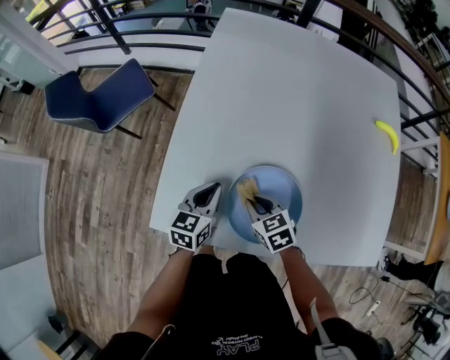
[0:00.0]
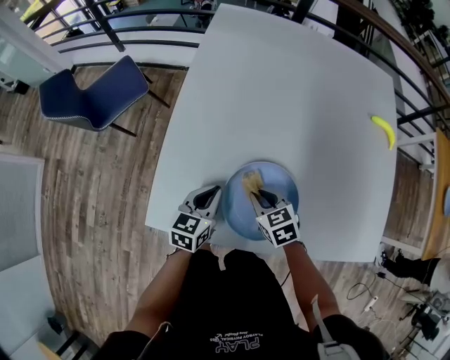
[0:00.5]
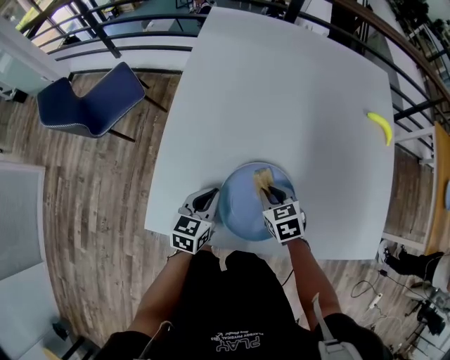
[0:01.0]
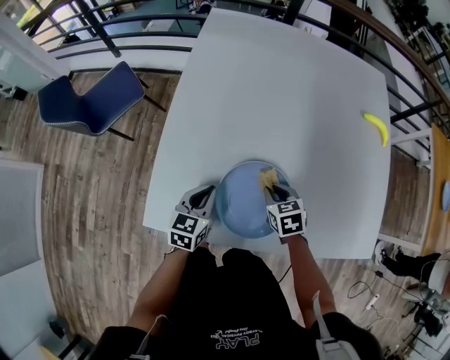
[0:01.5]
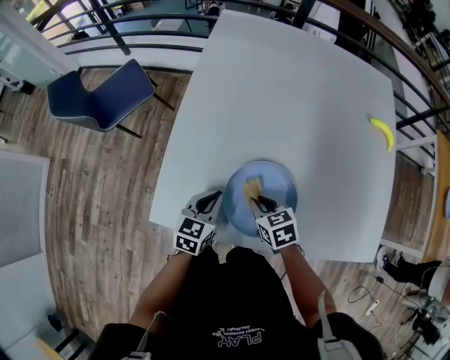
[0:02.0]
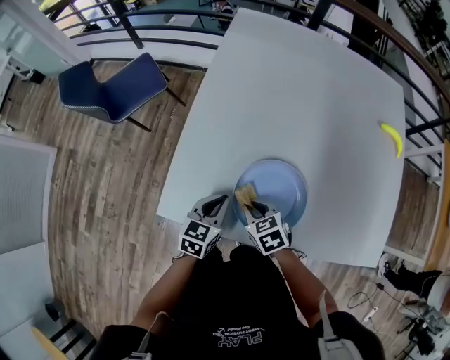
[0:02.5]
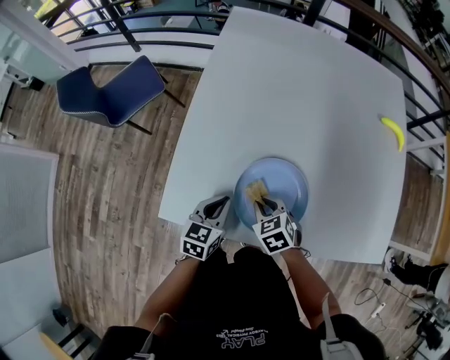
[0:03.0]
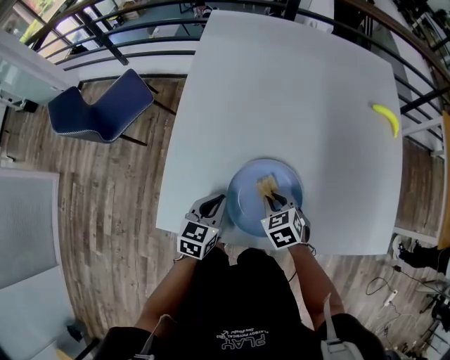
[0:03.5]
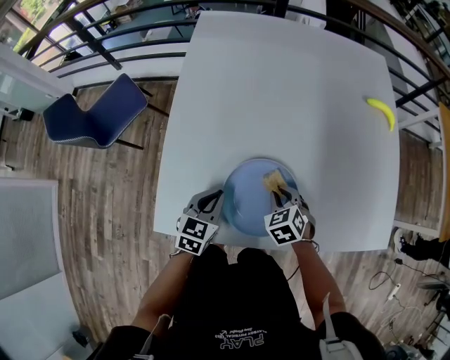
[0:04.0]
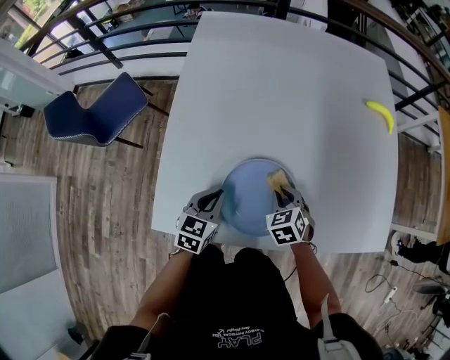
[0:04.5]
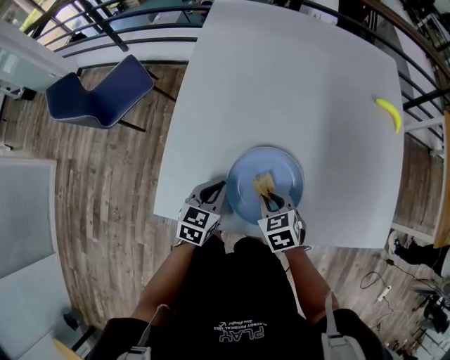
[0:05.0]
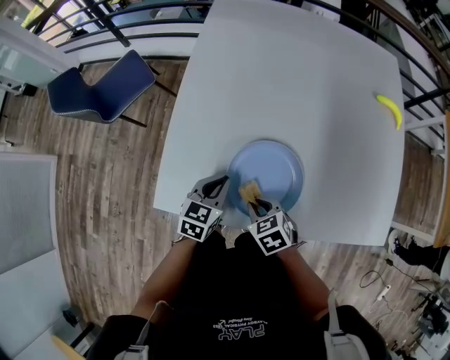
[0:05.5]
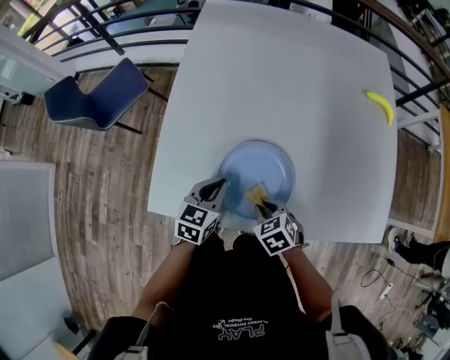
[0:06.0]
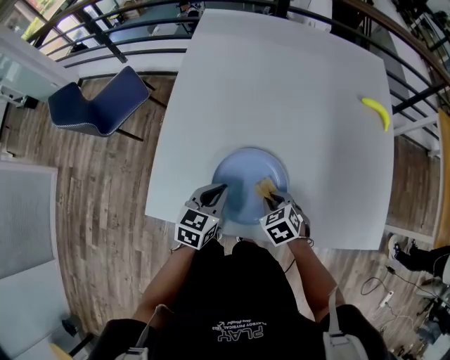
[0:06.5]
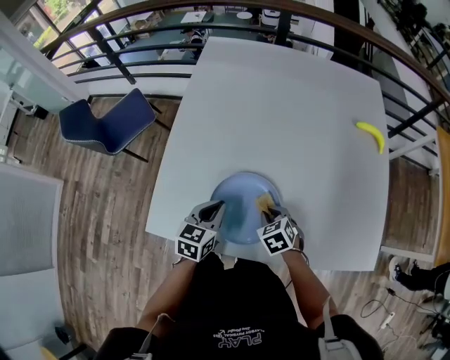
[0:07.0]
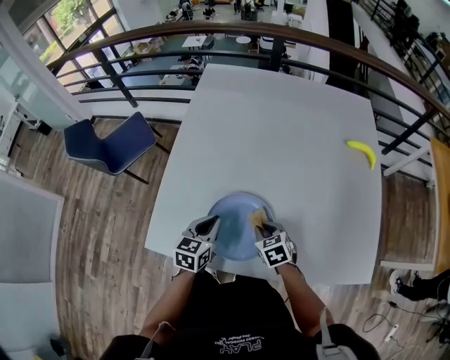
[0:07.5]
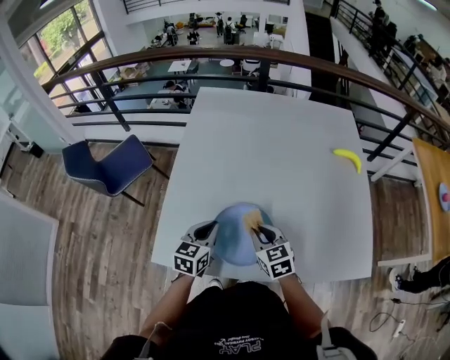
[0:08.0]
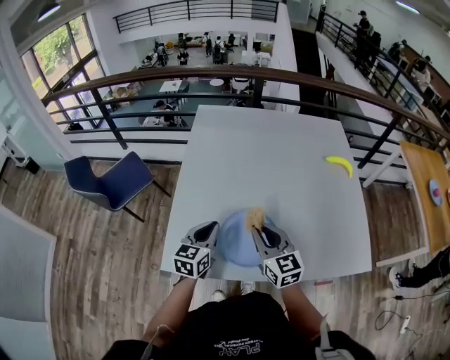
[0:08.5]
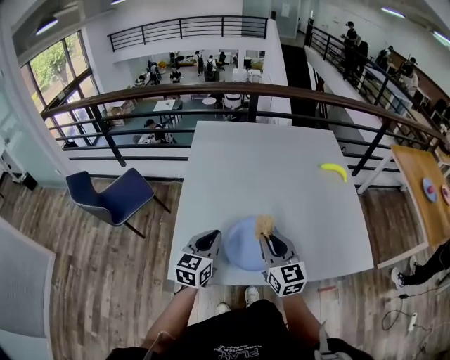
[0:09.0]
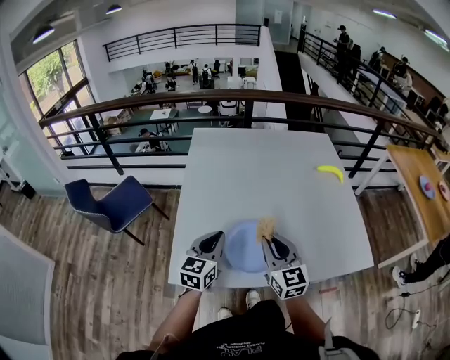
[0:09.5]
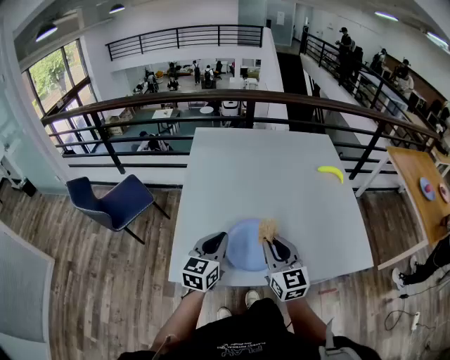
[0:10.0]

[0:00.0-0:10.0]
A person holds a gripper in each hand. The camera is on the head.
0:00.0 to 0:02.0: The right gripper travels to the right and back again, about 10 cm each way.
0:02.0 to 0:04.0: The right gripper moves to the right, some 5 cm, and rotates roughly 20 degrees.
0:04.0 to 0:06.0: The right gripper goes about 10 cm backward.
0:06.0 to 0:08.0: The left gripper travels upward by about 10 cm. The right gripper is displaced upward and forward by approximately 15 cm, and changes its angle by about 30 degrees.
0:08.0 to 0:10.0: The two grippers go some 15 cm upward and backward. The right gripper turns by some 30 degrees.

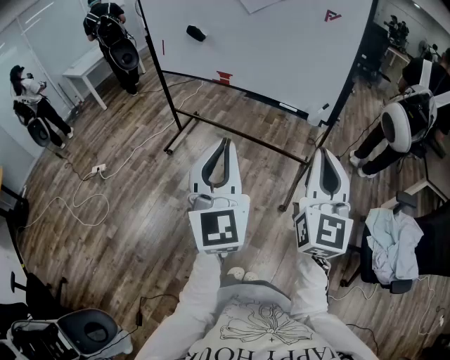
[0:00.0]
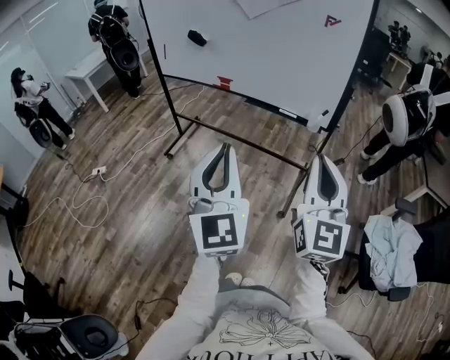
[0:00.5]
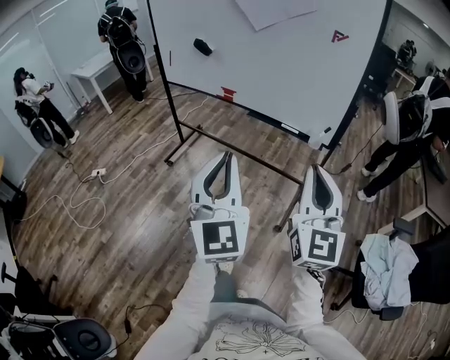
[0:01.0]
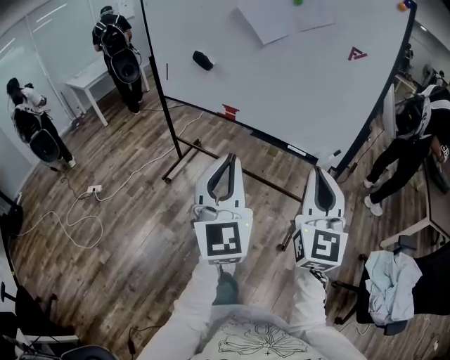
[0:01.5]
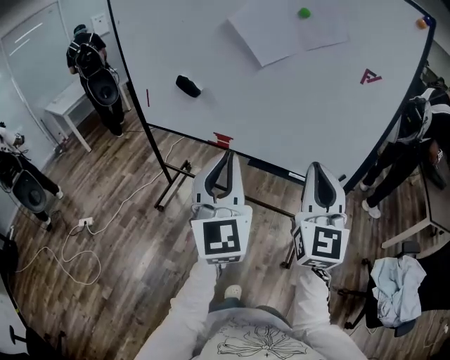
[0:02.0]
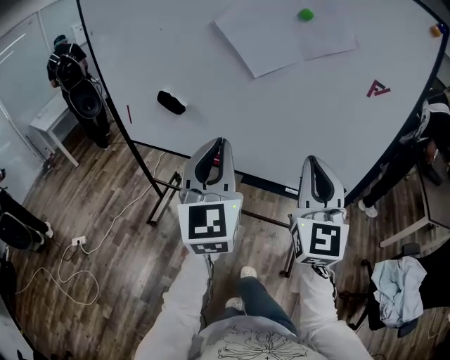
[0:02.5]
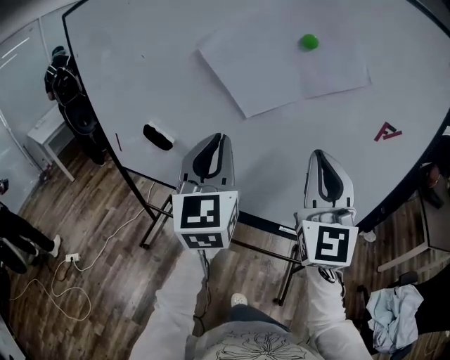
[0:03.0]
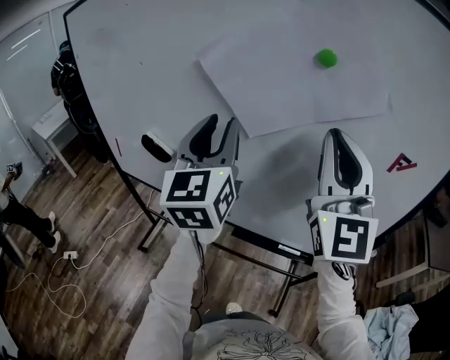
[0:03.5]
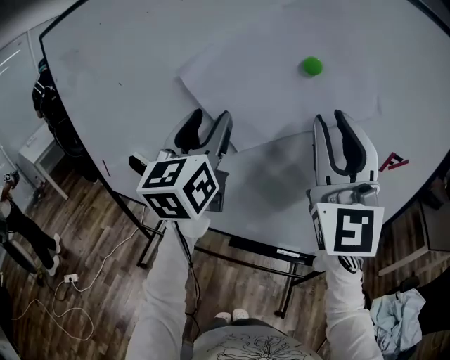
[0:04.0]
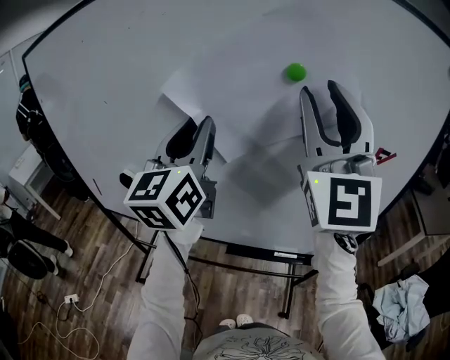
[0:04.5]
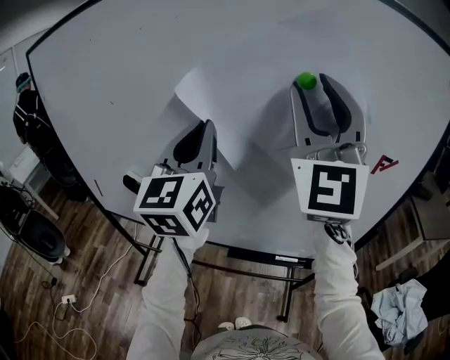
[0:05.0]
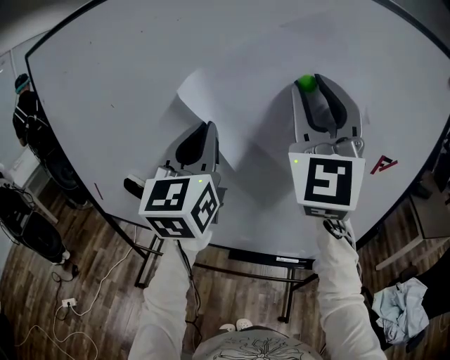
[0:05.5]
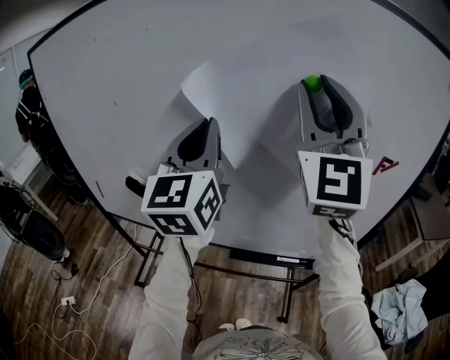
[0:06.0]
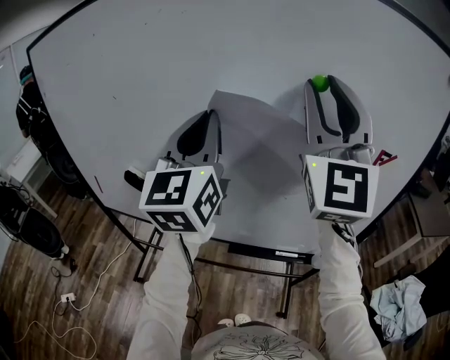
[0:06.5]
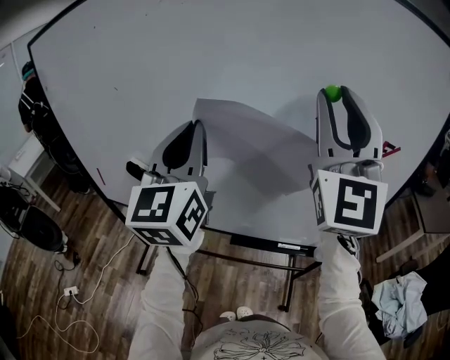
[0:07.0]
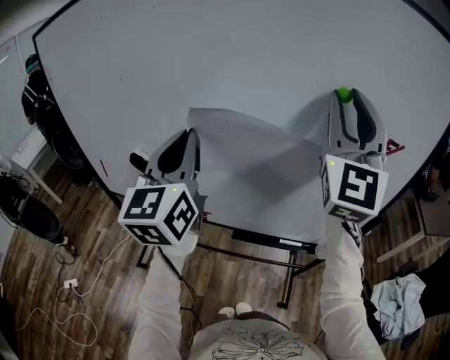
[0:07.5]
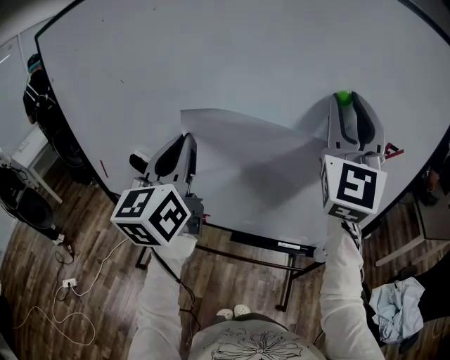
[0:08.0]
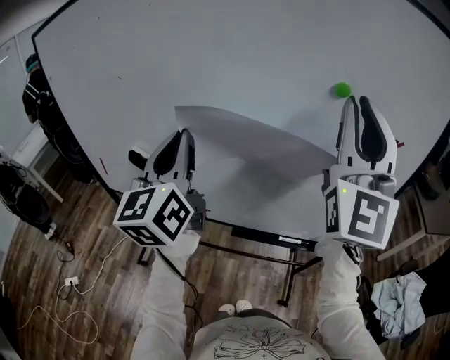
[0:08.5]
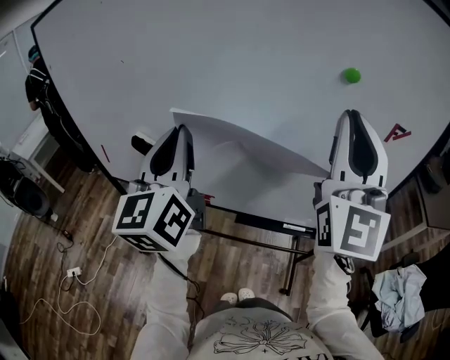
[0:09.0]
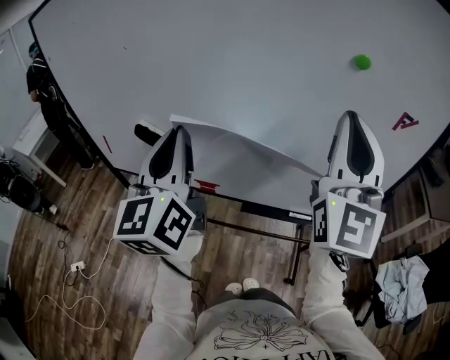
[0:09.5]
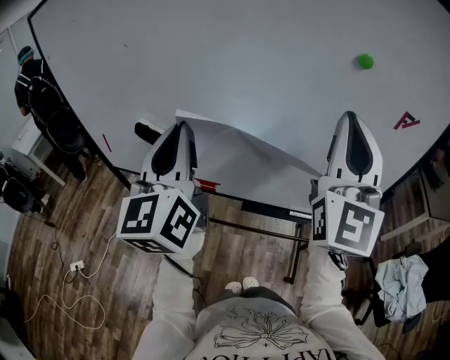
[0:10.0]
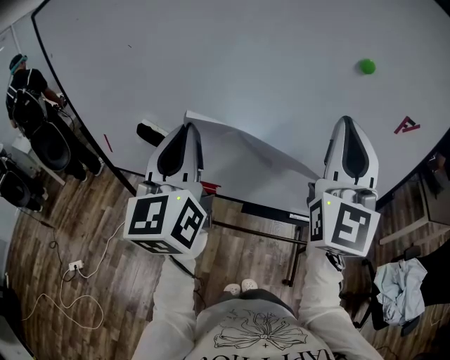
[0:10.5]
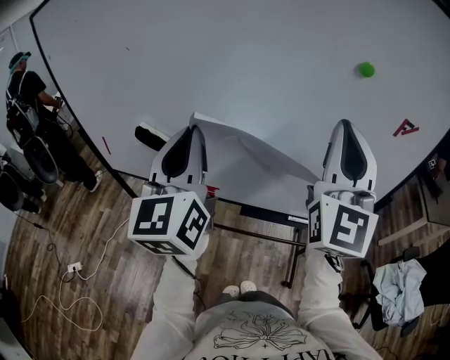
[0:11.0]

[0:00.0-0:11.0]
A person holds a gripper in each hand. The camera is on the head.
0:00.0 to 0:02.0: Both grippers move forward, roughly 35 cm.
0:02.0 to 0:03.5: The right gripper goes roughly 30 cm forward and upward; the left gripper shifts about 35 cm forward, and opens up.
0:03.5 to 0:05.5: The right gripper travels upward by approximately 10 cm, swivels about 20 degrees, and opens its fingers, while the left gripper goes about 5 cm upward, and closes up.
0:05.5 to 0:07.5: The right gripper goes roughly 5 cm to the right, while the left gripper shifts about 5 cm backward.
0:07.5 to 0:09.0: The right gripper shifts about 5 cm backward, and closes up.
0:09.0 to 0:11.0: The right gripper heads downward, covering roughly 5 cm.

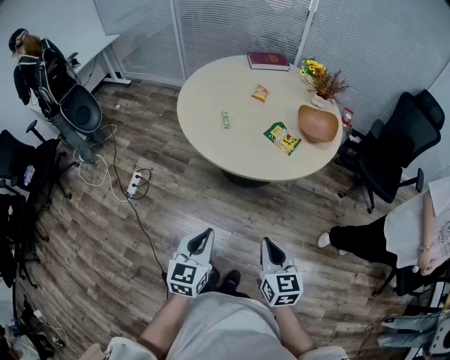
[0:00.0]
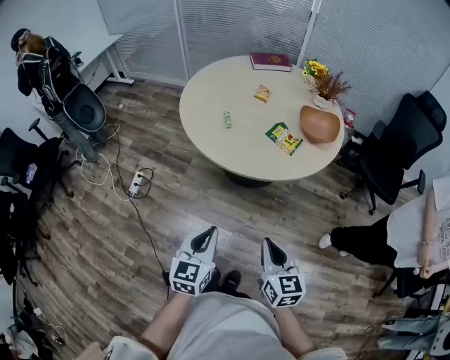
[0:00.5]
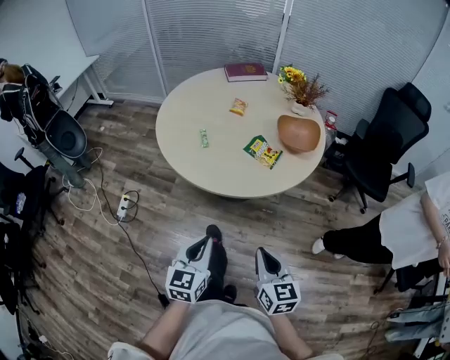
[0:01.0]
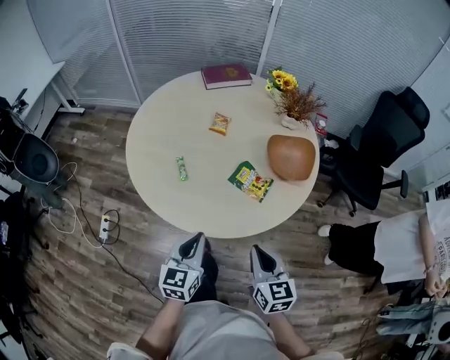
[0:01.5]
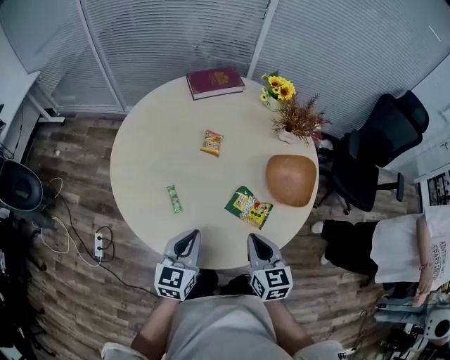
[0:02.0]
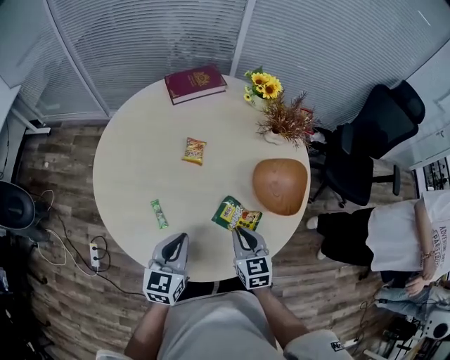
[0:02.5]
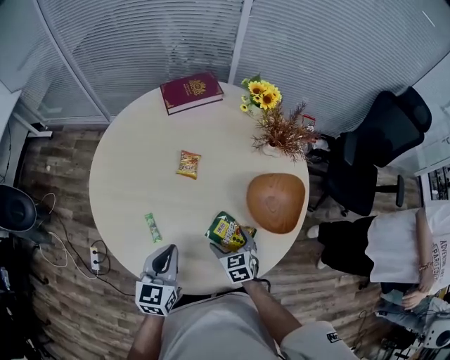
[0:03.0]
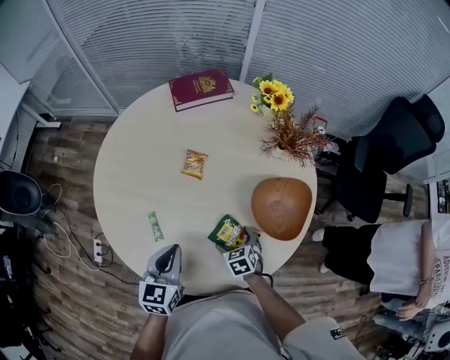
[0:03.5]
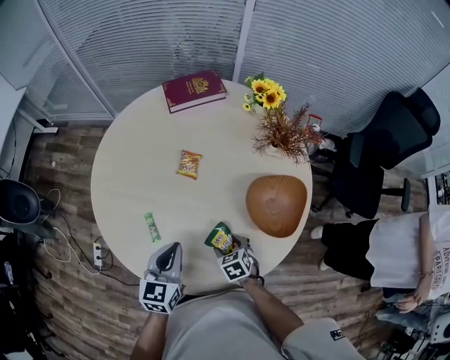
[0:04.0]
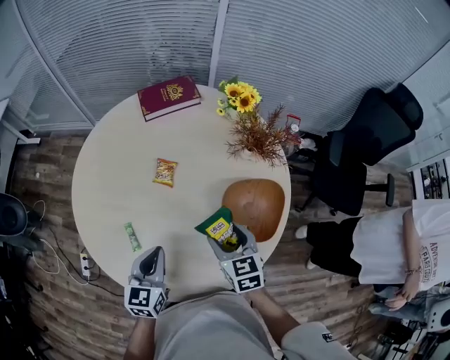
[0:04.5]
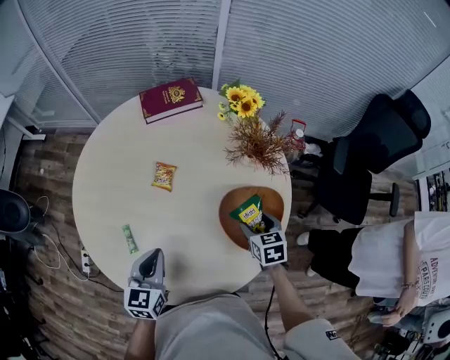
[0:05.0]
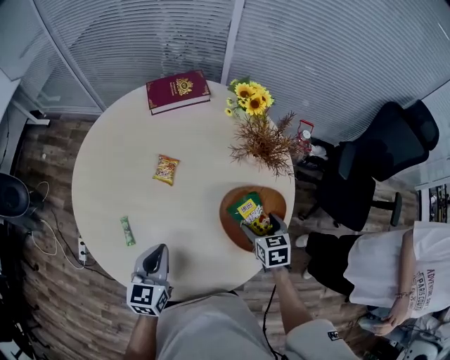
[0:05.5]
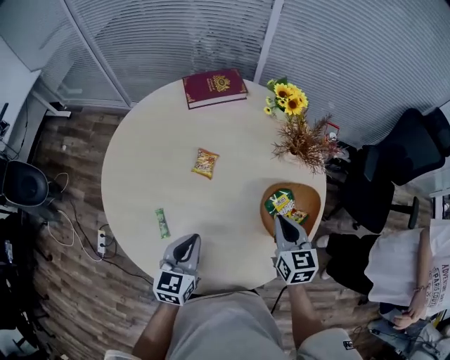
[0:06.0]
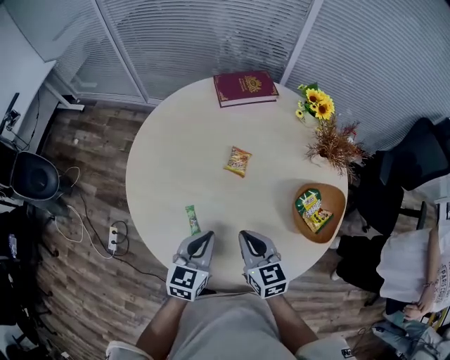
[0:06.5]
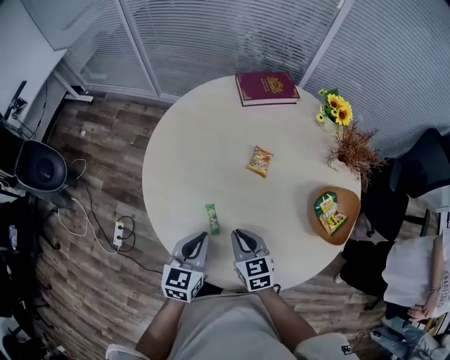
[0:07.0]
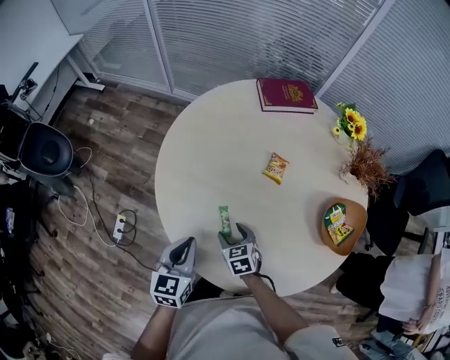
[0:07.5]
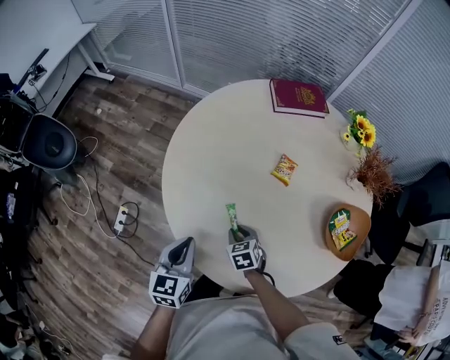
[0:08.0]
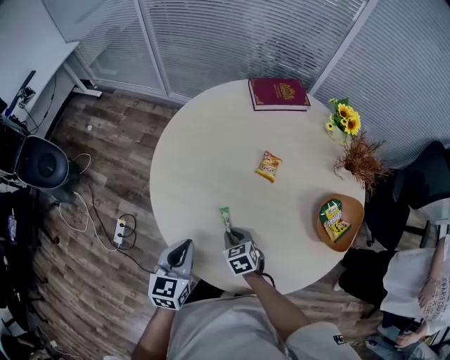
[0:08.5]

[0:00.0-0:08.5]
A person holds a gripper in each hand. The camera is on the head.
0:00.0 to 0:02.0: The pair of grippers is taken forward, some 40 cm.
0:02.0 to 0:04.0: The left gripper travels forward by approximately 10 cm. Meanwhile the right gripper goes roughly 20 cm downward, angles its fingers downward, by approximately 30 degrees, and opens up.
0:04.0 to 0:06.5: The left gripper shifts by approximately 5 cm. The right gripper heads upward, covering approximately 20 cm, goes to the right and returns, roughly 20 cm each way, tilts its fingers roughly 30 degrees upward, and closes up.
0:06.5 to 0:08.5: The left gripper heads to the left, covering about 15 cm. The right gripper goes some 20 cm downward and to the left, turns by some 30 degrees, and opens, then closes again.
